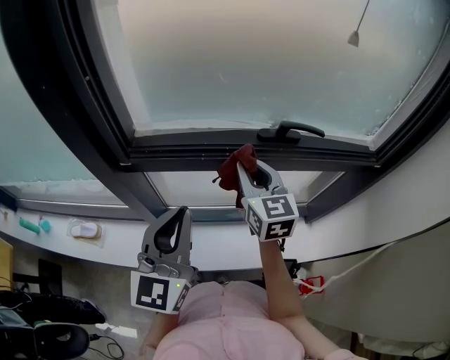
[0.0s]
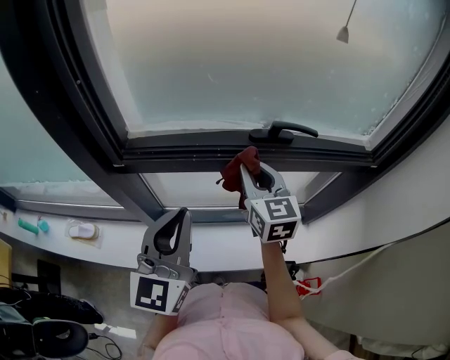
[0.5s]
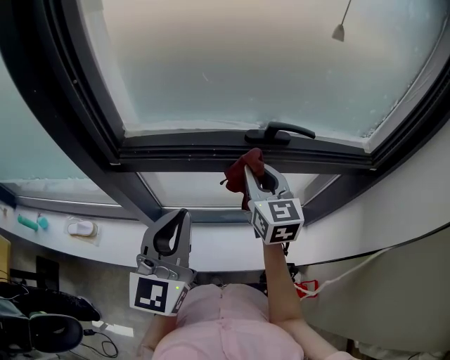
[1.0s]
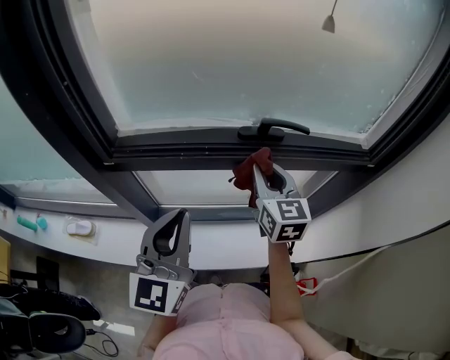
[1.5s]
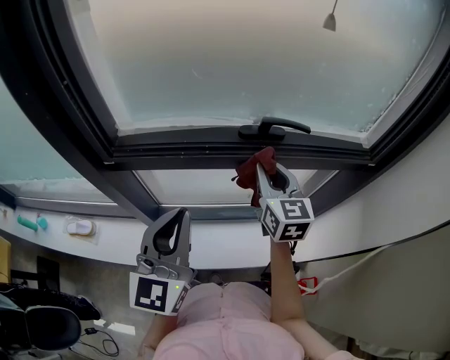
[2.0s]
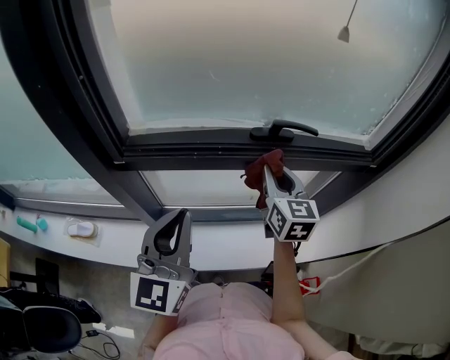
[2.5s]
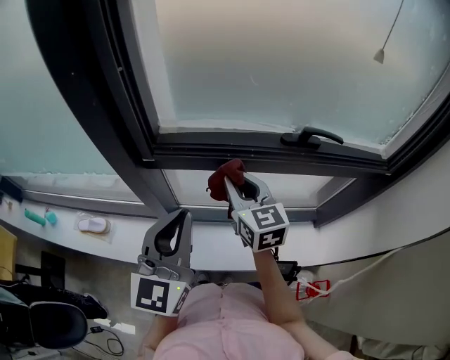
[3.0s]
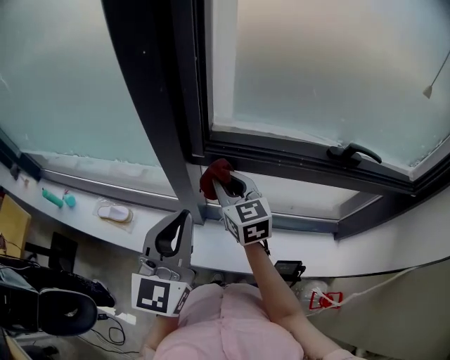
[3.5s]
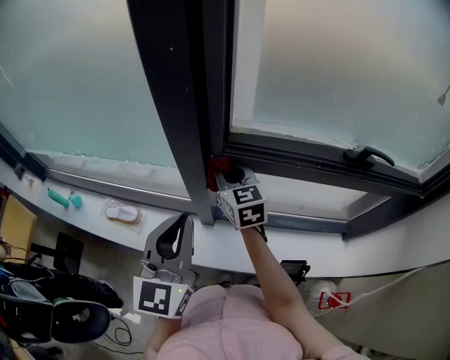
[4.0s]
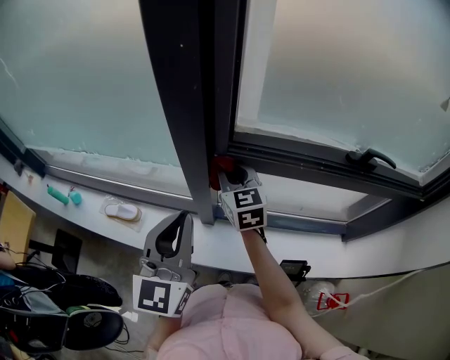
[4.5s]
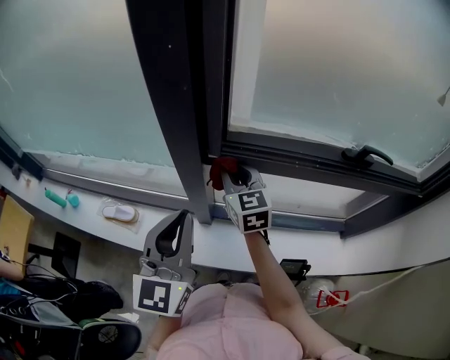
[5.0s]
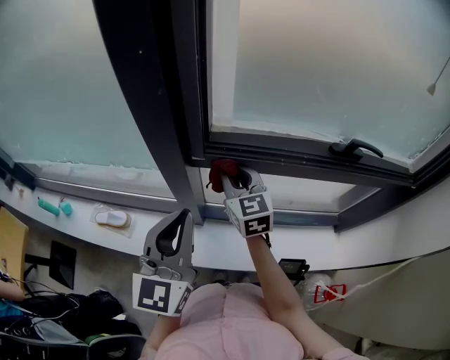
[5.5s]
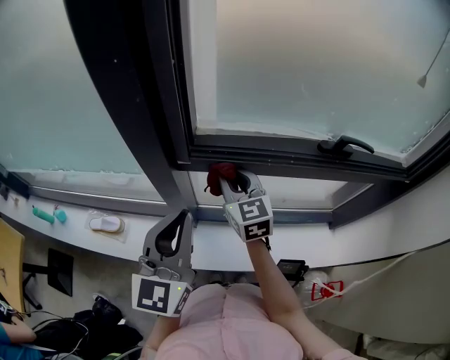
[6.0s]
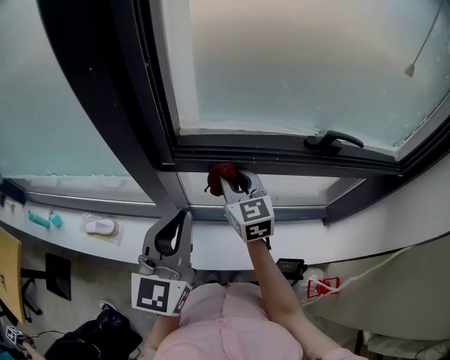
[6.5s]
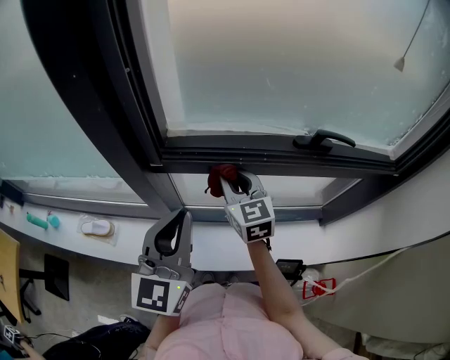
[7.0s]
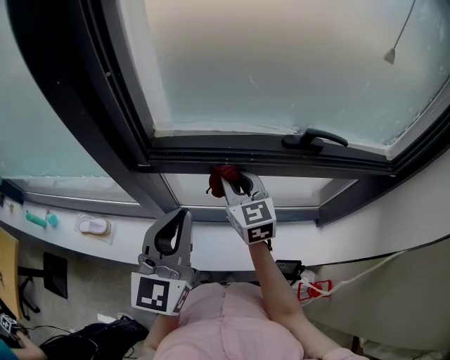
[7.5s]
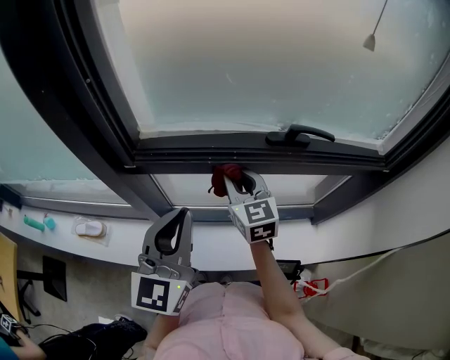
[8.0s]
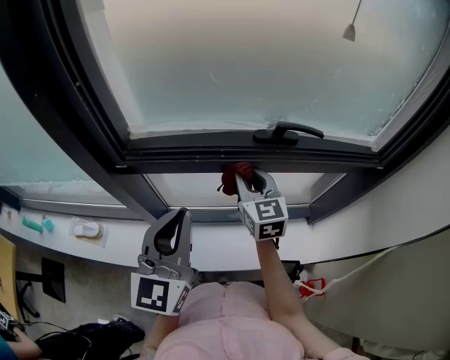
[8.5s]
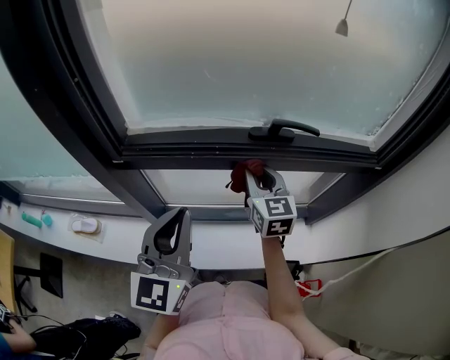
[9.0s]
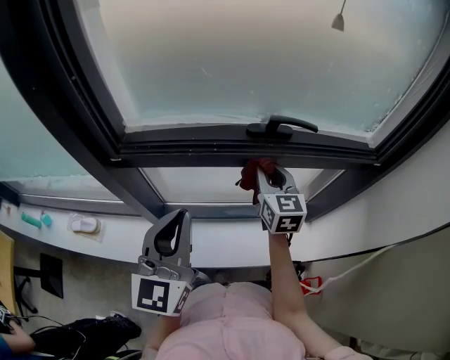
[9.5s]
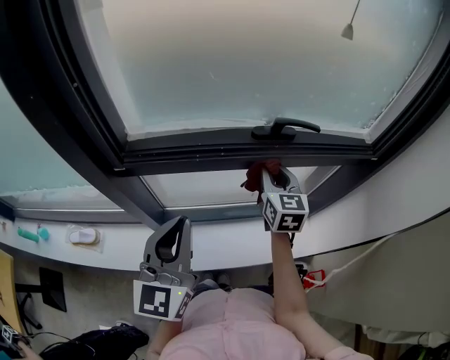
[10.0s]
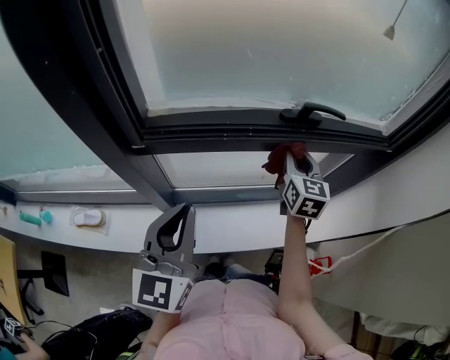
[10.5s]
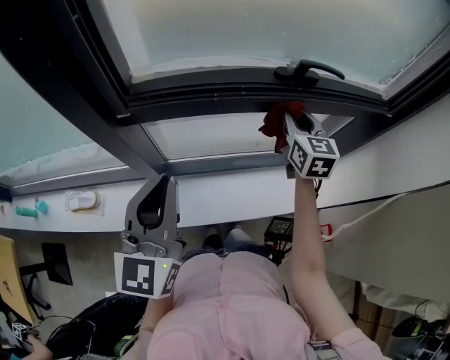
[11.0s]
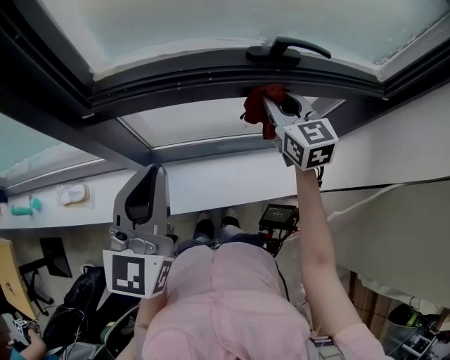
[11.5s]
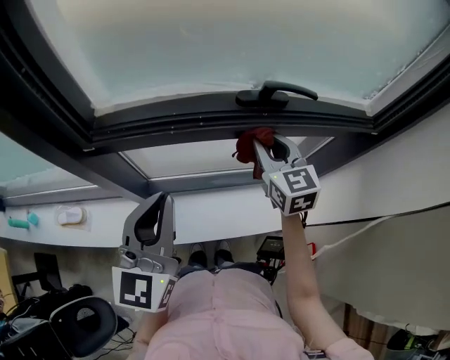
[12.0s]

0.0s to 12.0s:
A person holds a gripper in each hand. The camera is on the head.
0.0s to 2.0s: The left gripper heads to the right, covering about 5 cm, while the right gripper goes roughly 10 cm to the right.
2.0s to 4.0s: The left gripper moves to the left, approximately 25 cm. The right gripper goes some 40 cm to the left, and changes its angle by approximately 20 degrees.
4.0s to 6.0s: Both grippers travel together to the right, some 5 cm.
6.0s to 8.0s: The two grippers go approximately 15 cm to the right.
8.0s to 10.0s: The right gripper shifts some 15 cm to the right, and changes its angle by about 20 degrees.
10.0s to 12.0s: The left gripper reaches roughly 5 cm to the left, then returns.

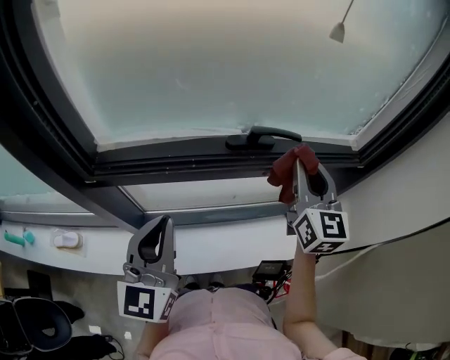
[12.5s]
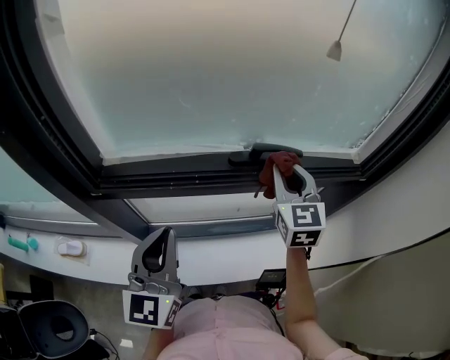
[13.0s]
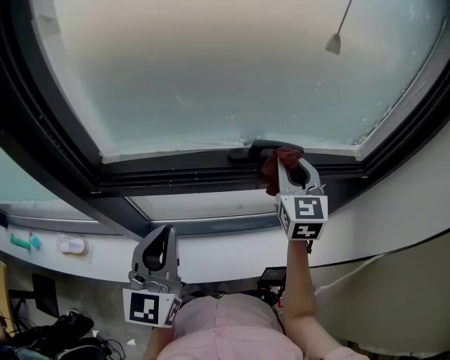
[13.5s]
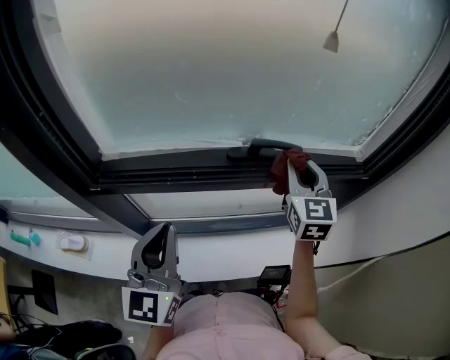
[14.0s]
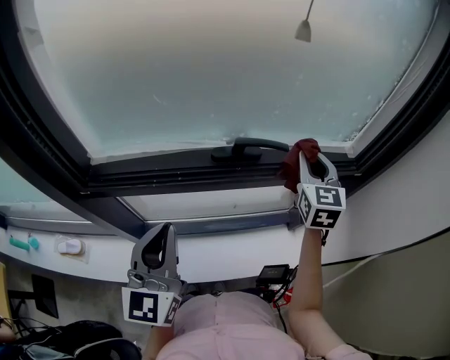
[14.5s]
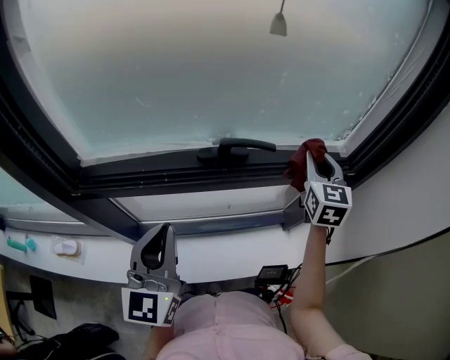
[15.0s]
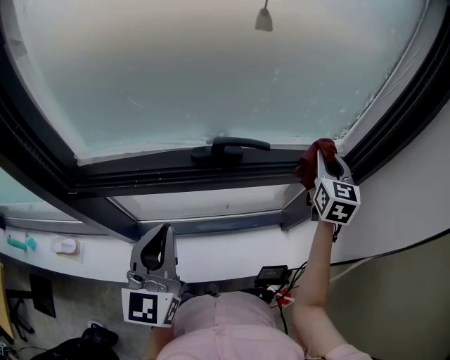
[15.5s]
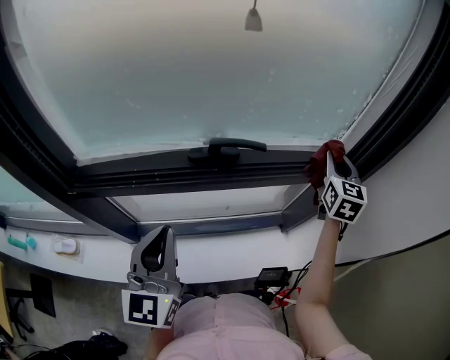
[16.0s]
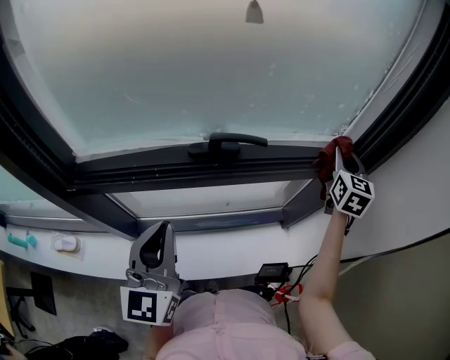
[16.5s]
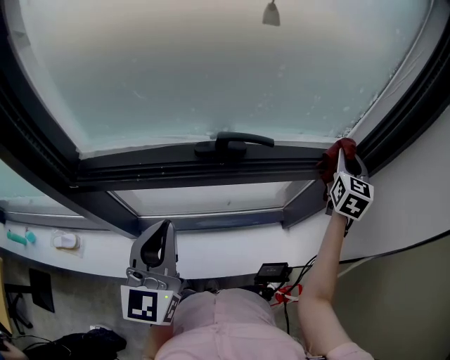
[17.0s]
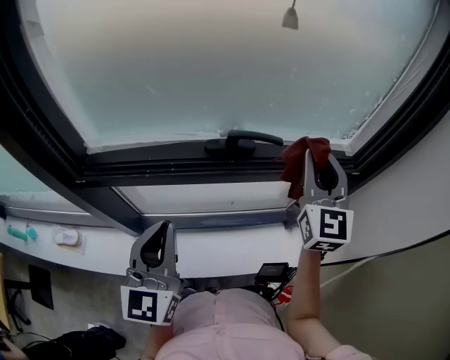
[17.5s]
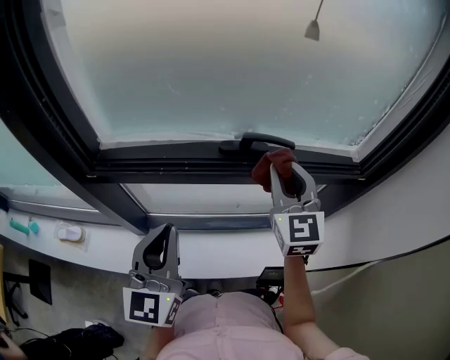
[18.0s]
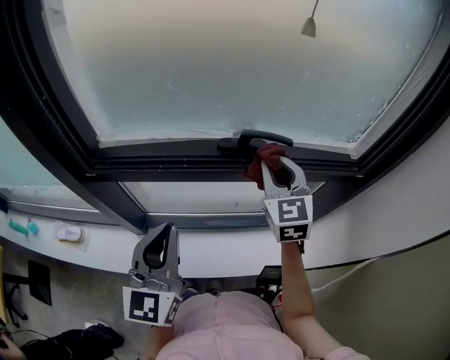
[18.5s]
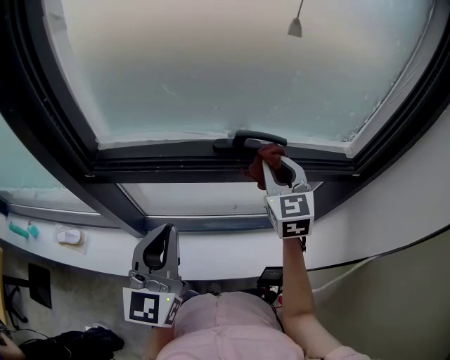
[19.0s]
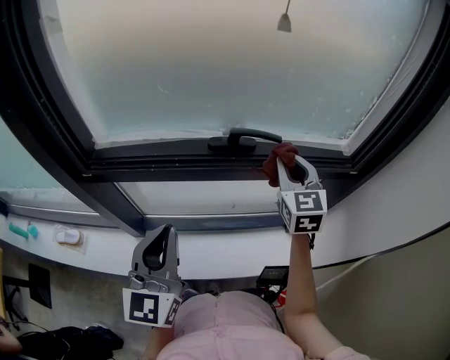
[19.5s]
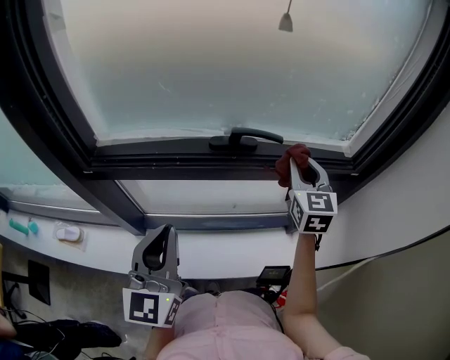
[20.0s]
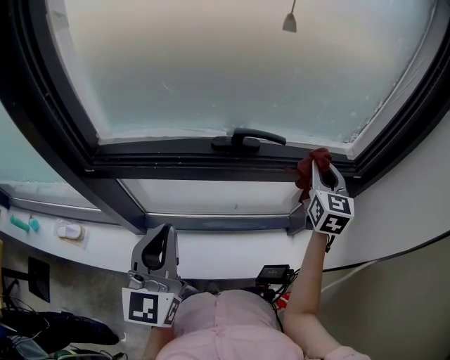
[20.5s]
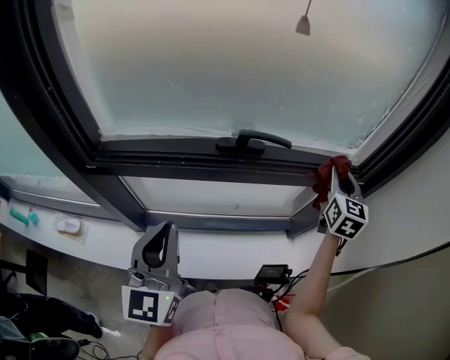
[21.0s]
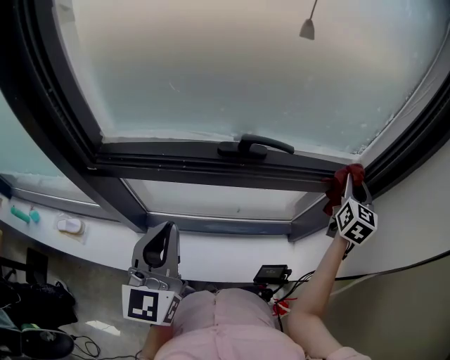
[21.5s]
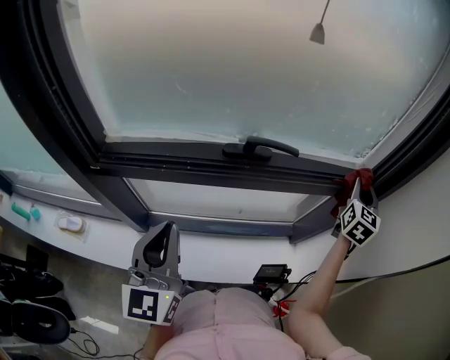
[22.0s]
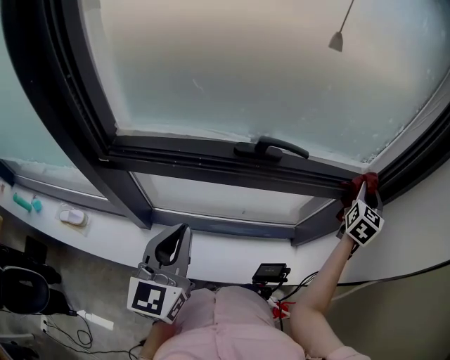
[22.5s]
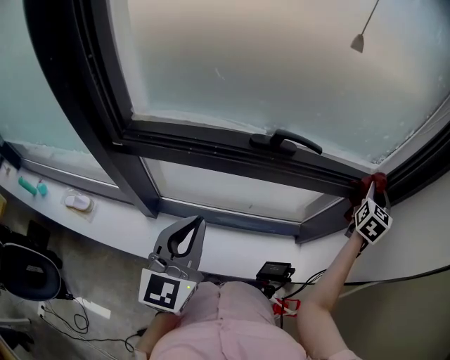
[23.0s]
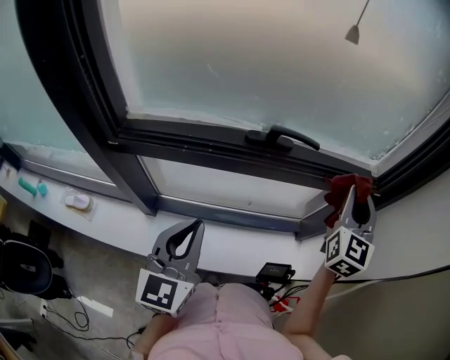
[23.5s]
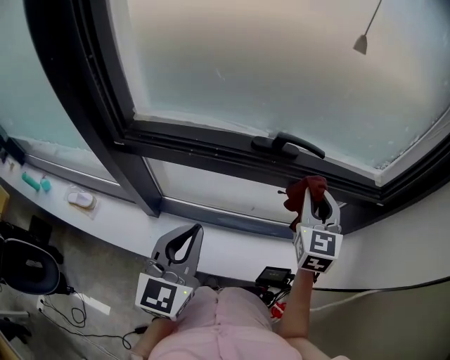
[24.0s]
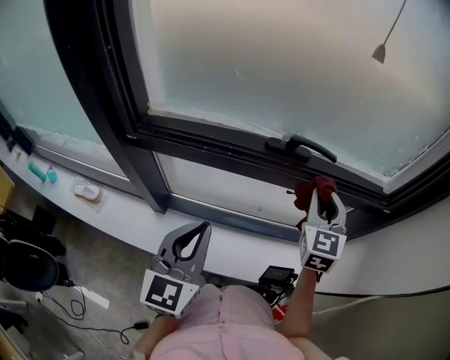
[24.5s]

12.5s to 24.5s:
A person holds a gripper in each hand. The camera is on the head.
12.5s to 14.5s: The right gripper moves forward and to the right, roughly 10 cm.
14.5s to 16.5s: The left gripper heads to the right, covering approximately 5 cm, while the right gripper moves to the right, some 15 cm.
16.5s to 18.5s: The left gripper changes place by roughly 5 cm. The right gripper heads to the left, covering some 30 cm, and swivels about 30 degrees.
18.5s to 20.5s: The right gripper travels to the right by about 15 cm.
20.5s to 22.5s: The right gripper moves to the right, about 15 cm, and rotates about 20 degrees.
22.5s to 24.5s: The right gripper travels to the left by roughly 25 cm, and swivels roughly 30 degrees.

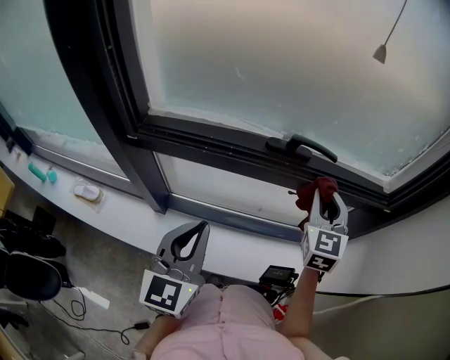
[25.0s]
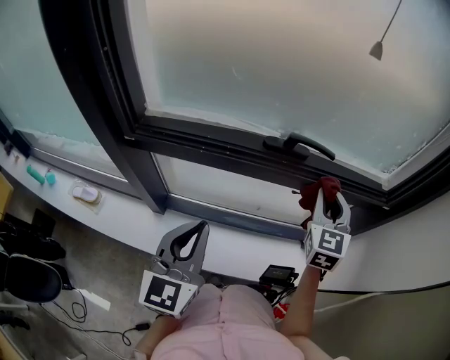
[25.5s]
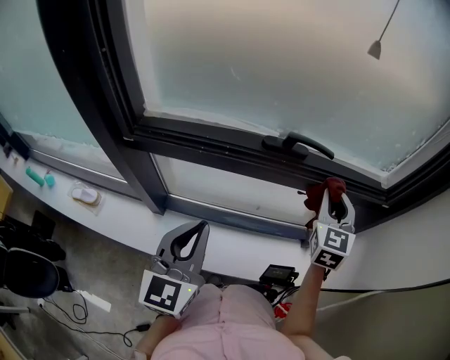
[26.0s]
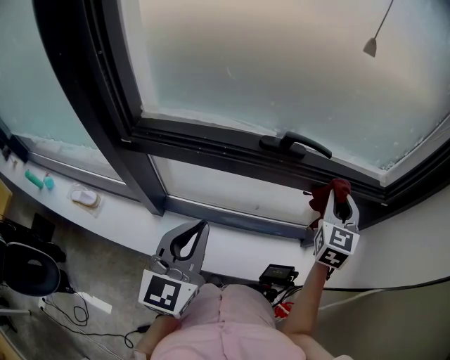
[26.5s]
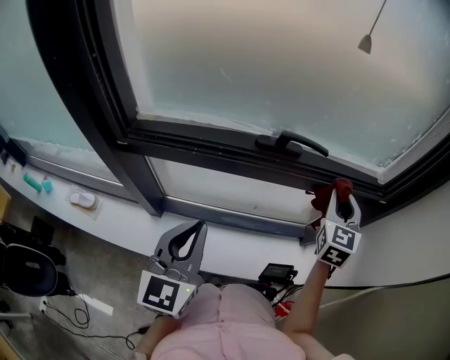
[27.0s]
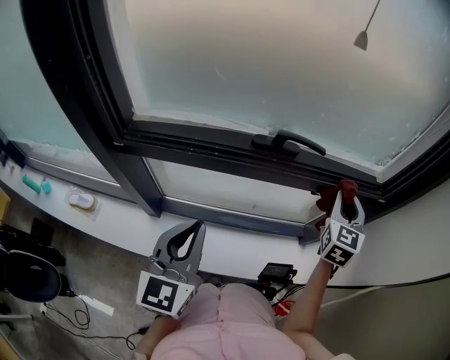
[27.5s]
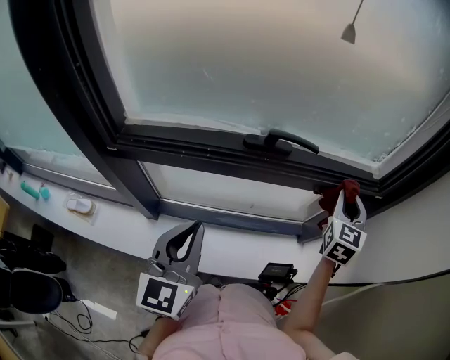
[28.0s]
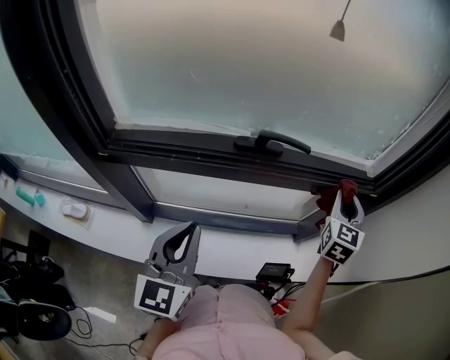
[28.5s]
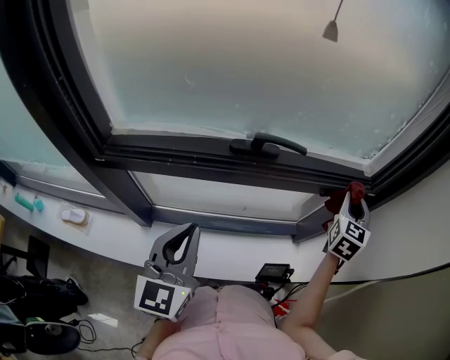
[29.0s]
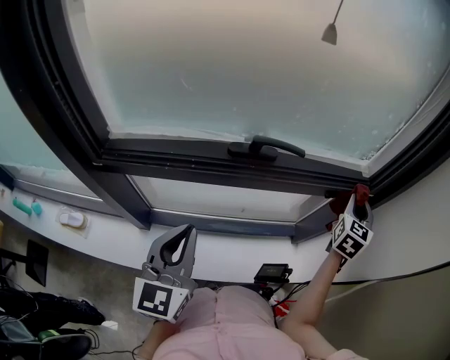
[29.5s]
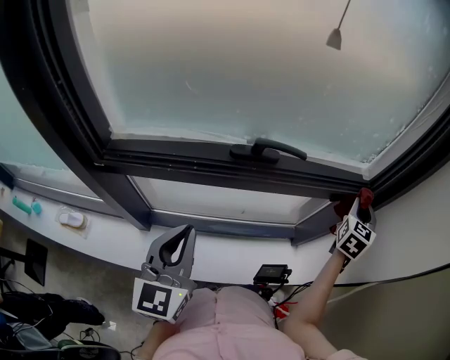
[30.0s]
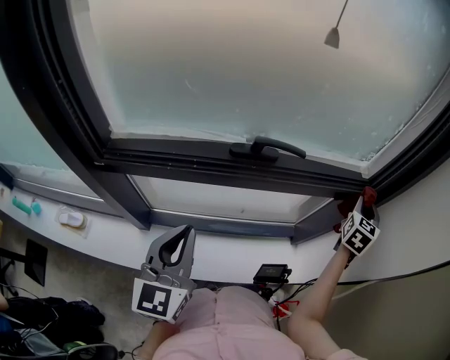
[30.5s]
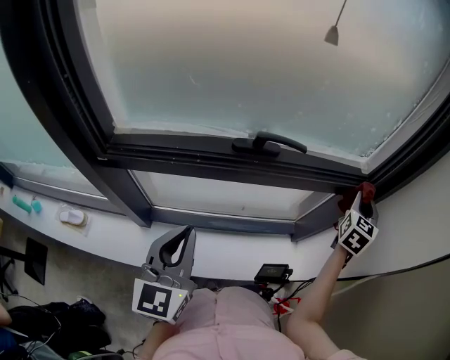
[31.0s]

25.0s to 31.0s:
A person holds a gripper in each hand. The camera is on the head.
25.0s to 27.0s: The right gripper moves to the right, about 10 cm.
27.0s to 29.0s: The right gripper goes approximately 10 cm to the right.
